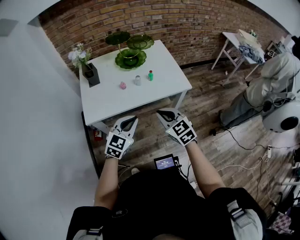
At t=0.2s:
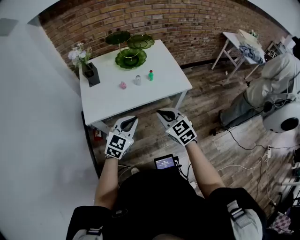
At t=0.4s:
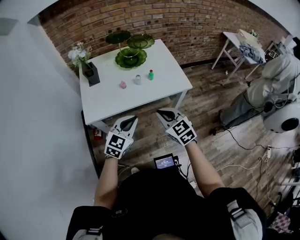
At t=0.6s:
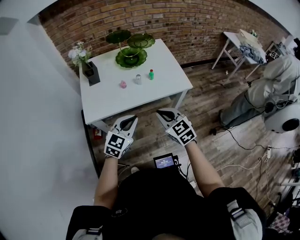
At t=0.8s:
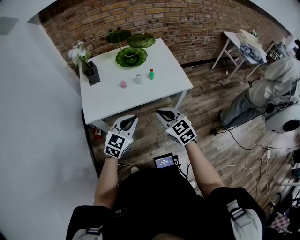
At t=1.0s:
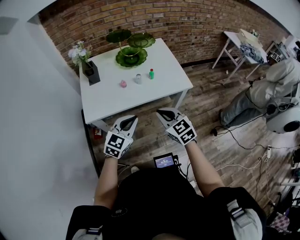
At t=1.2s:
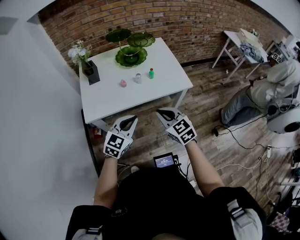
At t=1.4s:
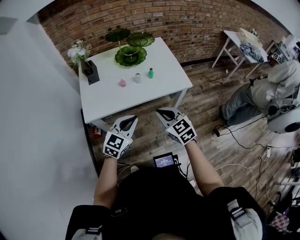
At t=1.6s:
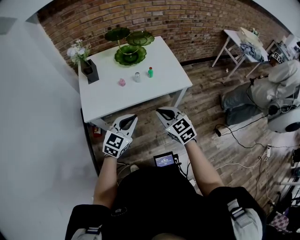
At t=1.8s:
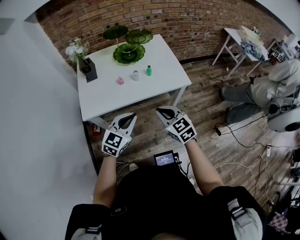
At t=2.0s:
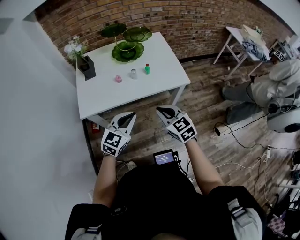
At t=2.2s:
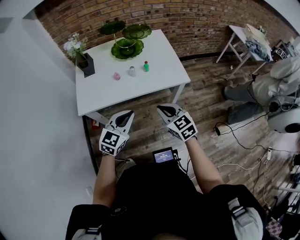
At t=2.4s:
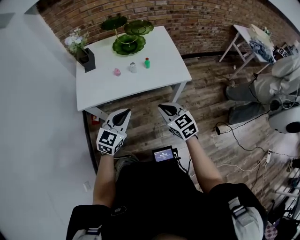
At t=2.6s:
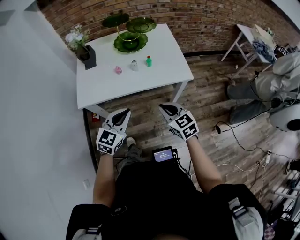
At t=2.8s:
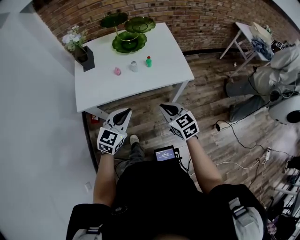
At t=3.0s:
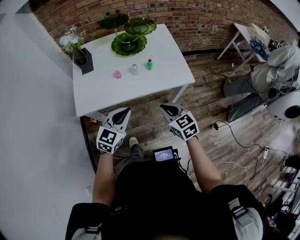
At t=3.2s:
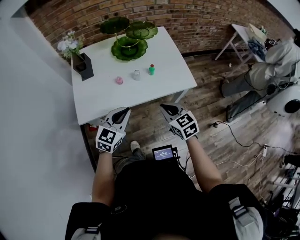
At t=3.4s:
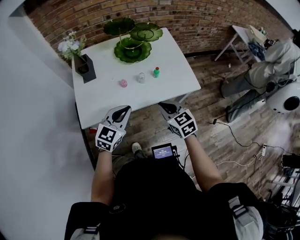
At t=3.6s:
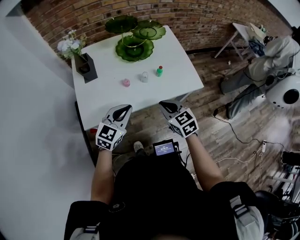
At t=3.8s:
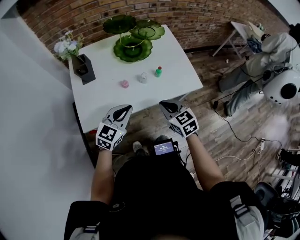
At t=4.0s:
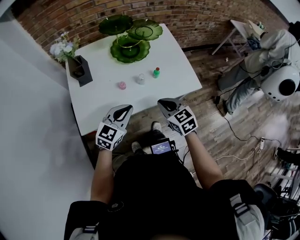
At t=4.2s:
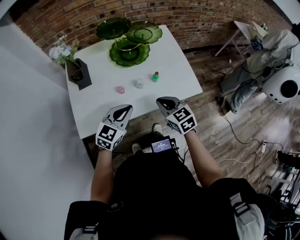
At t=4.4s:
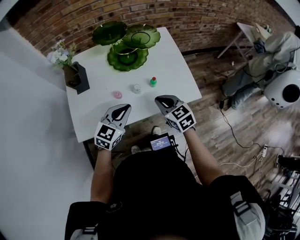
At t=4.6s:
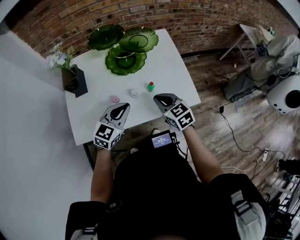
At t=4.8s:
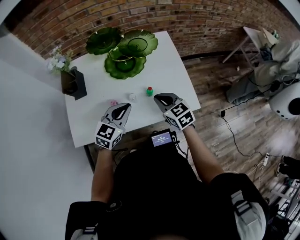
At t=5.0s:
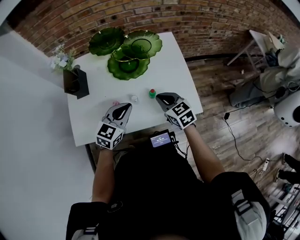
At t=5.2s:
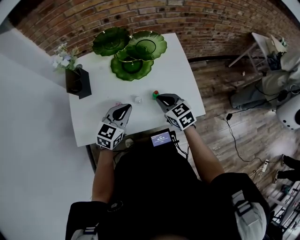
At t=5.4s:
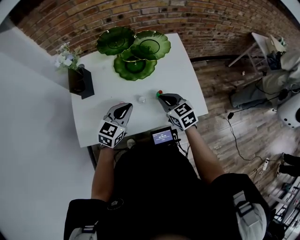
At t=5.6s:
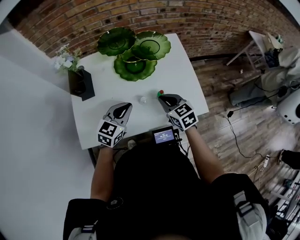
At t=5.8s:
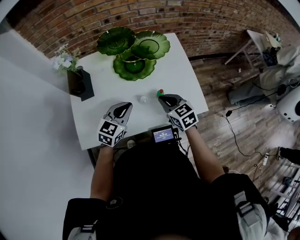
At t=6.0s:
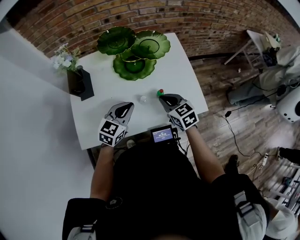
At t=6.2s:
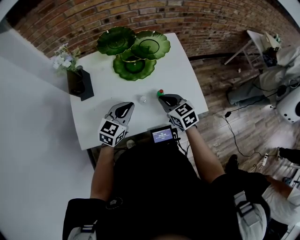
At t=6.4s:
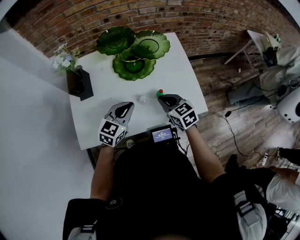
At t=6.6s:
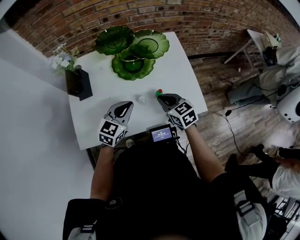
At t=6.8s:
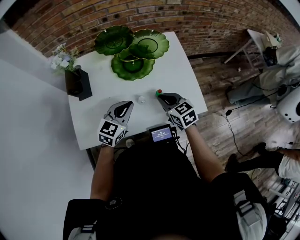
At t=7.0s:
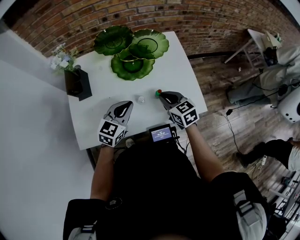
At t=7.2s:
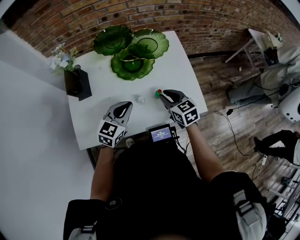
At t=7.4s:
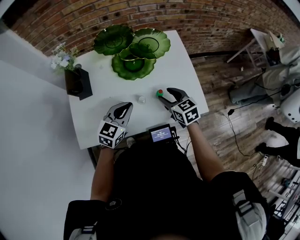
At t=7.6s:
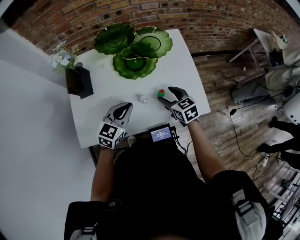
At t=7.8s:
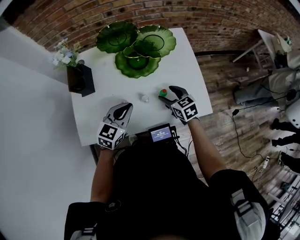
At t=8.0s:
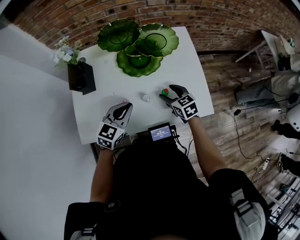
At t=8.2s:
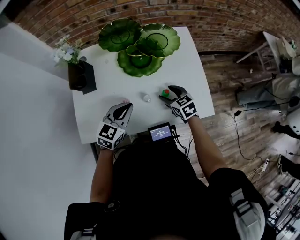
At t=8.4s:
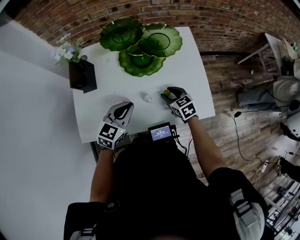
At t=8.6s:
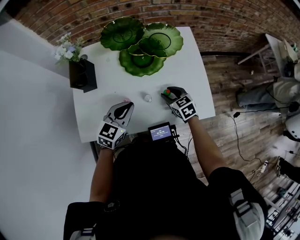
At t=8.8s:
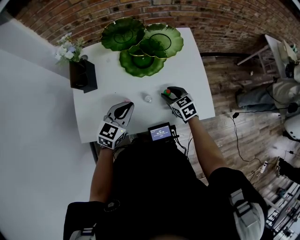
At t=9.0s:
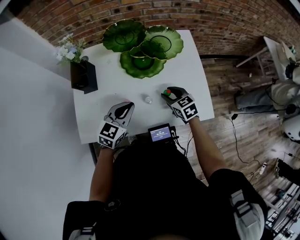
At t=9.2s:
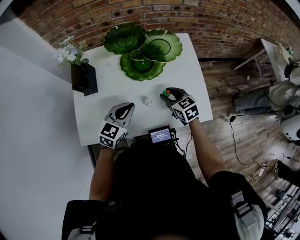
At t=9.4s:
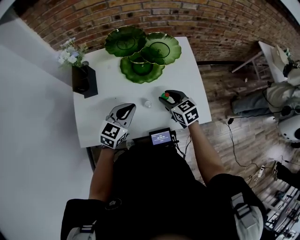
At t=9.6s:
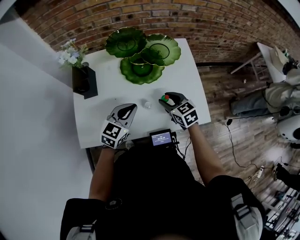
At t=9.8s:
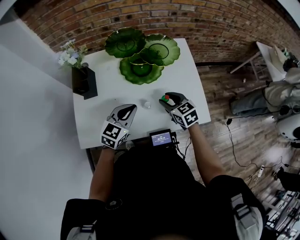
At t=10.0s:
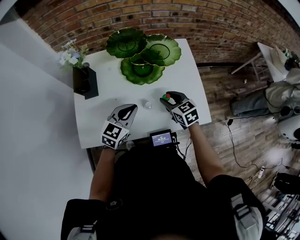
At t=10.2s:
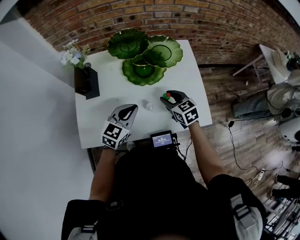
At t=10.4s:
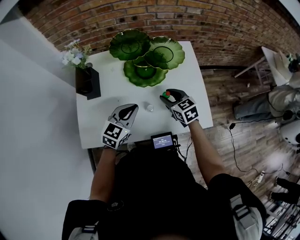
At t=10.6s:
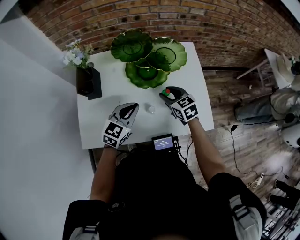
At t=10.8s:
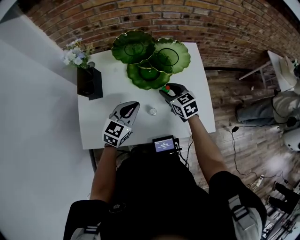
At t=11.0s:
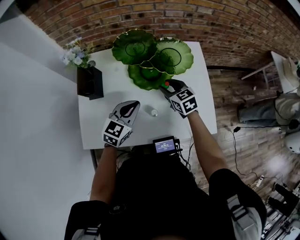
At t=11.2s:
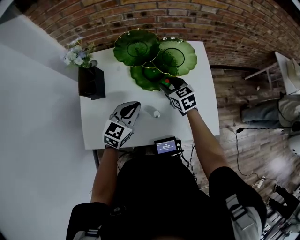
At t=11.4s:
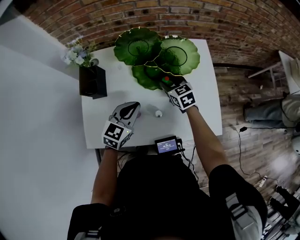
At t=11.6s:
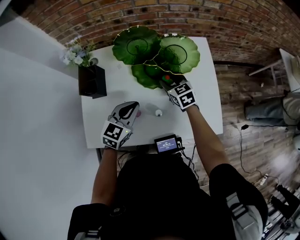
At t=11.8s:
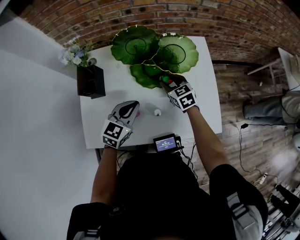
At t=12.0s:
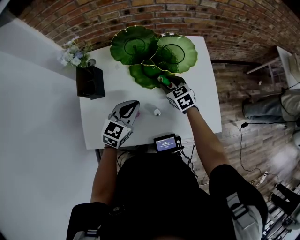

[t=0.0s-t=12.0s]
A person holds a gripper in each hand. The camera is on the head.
t=0.0s to t=1.6s: Both grippers stay put.
t=1.6s to t=3.0s: The left gripper shifts by approximately 5 cm. The right gripper is displaced downward by approximately 5 cm.
t=3.0s to t=4.4s: The grippers both shift forward by roughly 15 cm.
t=4.4s to t=6.0s: Both grippers travel together forward, about 5 cm.
t=6.0s to t=7.6s: The right gripper moves roughly 5 cm, and opens up.
t=7.6s to t=9.0s: The right gripper closes its fingers.
t=9.0s to t=10.4s: The right gripper ends up approximately 5 cm from where it was.
t=10.4s to t=12.0s: The right gripper moves forward, roughly 10 cm.

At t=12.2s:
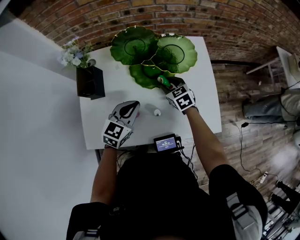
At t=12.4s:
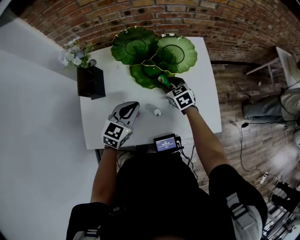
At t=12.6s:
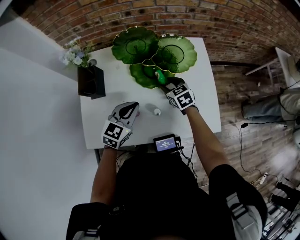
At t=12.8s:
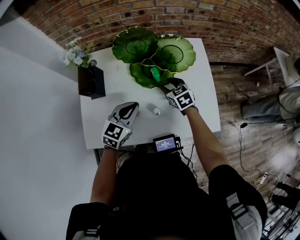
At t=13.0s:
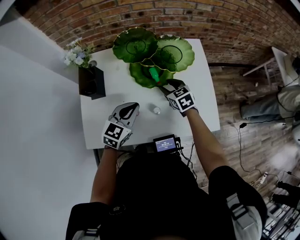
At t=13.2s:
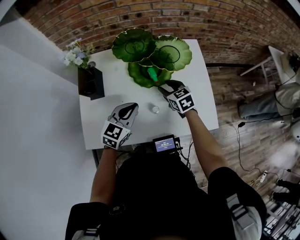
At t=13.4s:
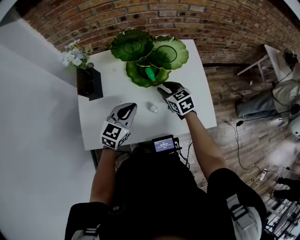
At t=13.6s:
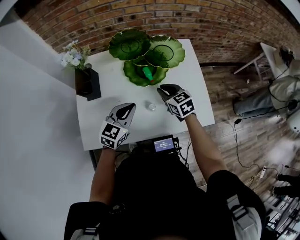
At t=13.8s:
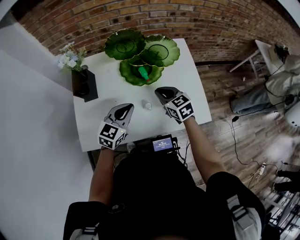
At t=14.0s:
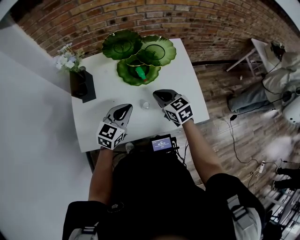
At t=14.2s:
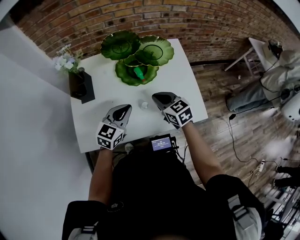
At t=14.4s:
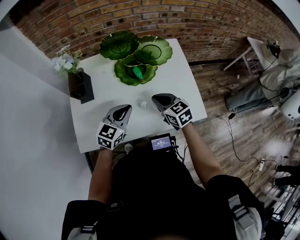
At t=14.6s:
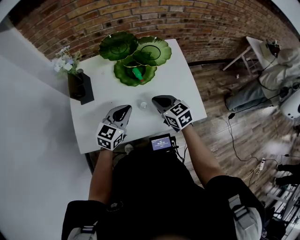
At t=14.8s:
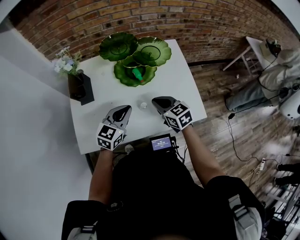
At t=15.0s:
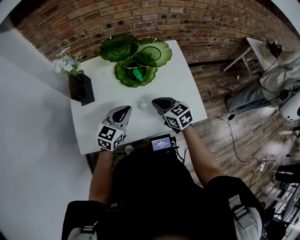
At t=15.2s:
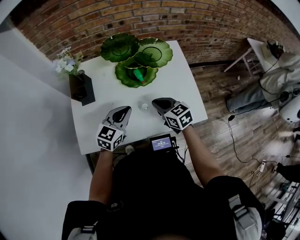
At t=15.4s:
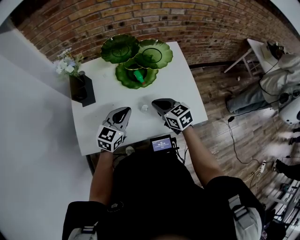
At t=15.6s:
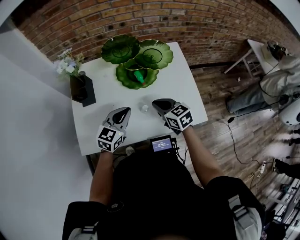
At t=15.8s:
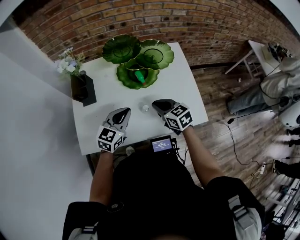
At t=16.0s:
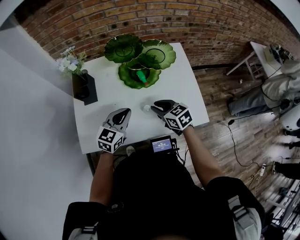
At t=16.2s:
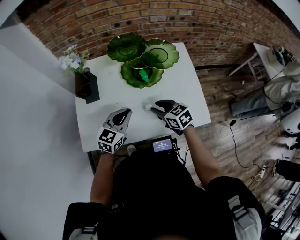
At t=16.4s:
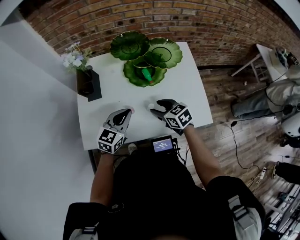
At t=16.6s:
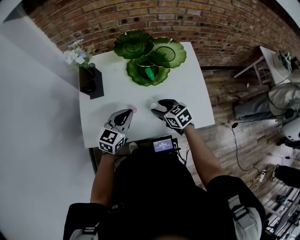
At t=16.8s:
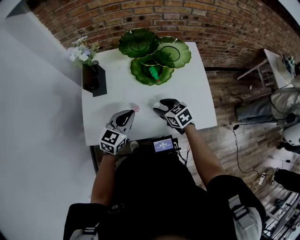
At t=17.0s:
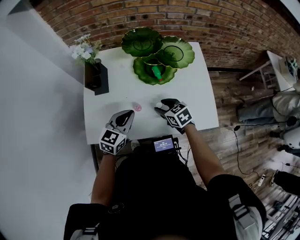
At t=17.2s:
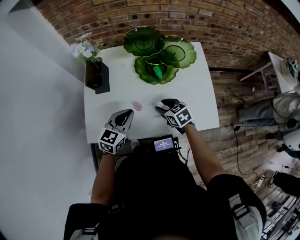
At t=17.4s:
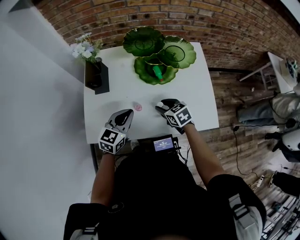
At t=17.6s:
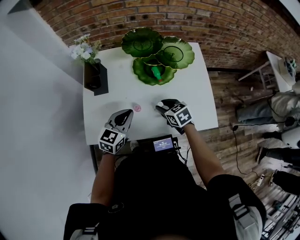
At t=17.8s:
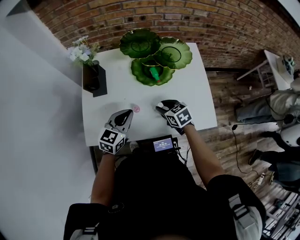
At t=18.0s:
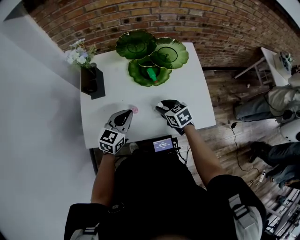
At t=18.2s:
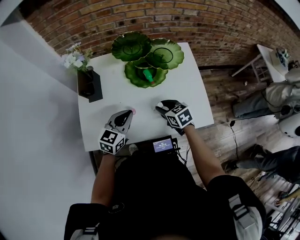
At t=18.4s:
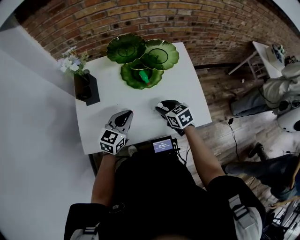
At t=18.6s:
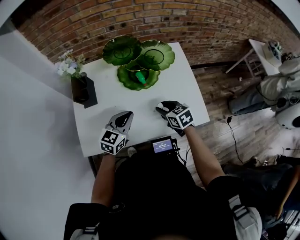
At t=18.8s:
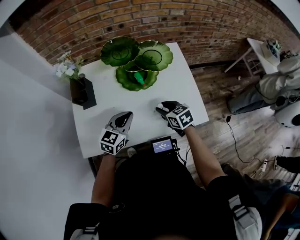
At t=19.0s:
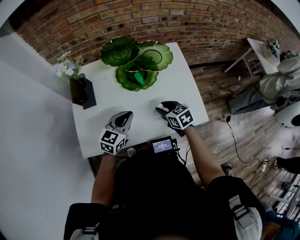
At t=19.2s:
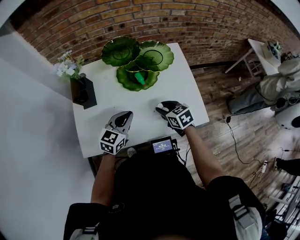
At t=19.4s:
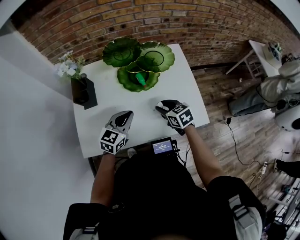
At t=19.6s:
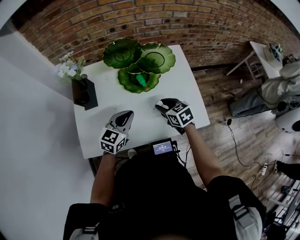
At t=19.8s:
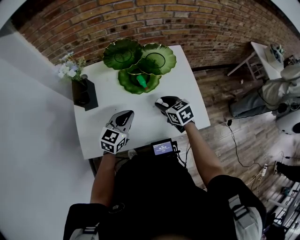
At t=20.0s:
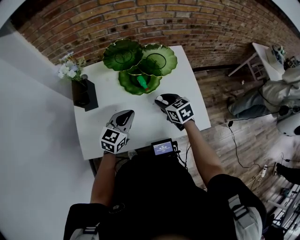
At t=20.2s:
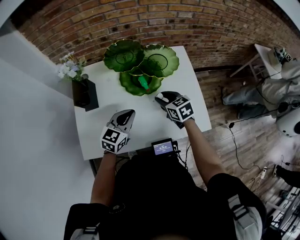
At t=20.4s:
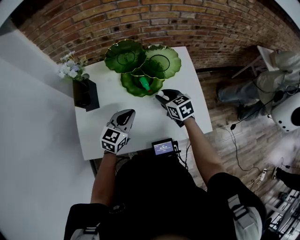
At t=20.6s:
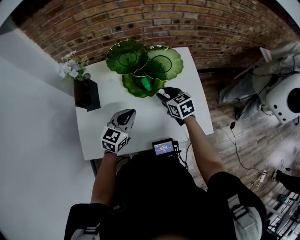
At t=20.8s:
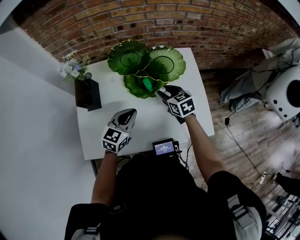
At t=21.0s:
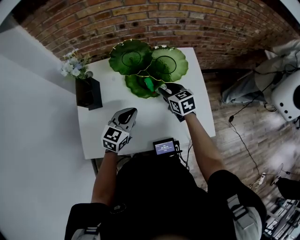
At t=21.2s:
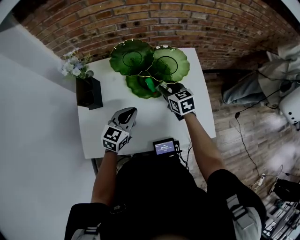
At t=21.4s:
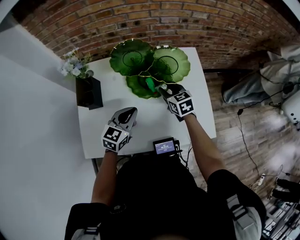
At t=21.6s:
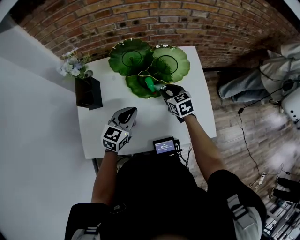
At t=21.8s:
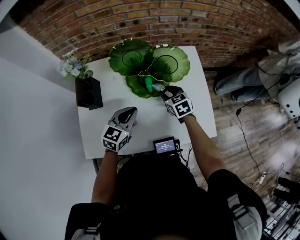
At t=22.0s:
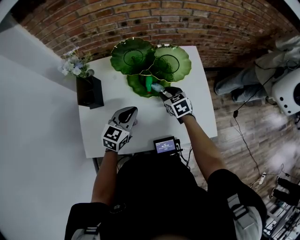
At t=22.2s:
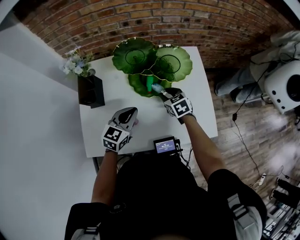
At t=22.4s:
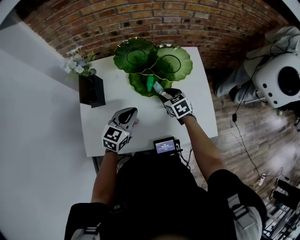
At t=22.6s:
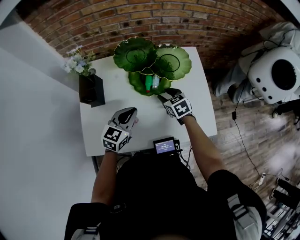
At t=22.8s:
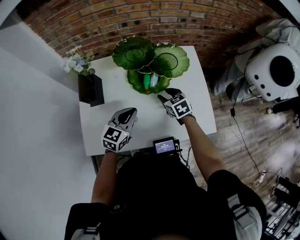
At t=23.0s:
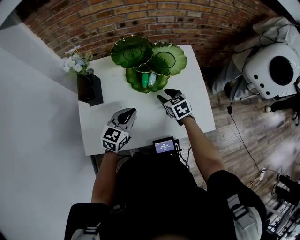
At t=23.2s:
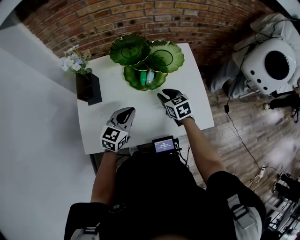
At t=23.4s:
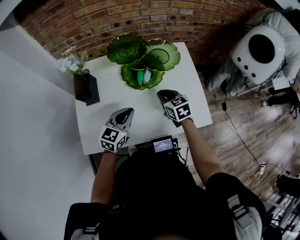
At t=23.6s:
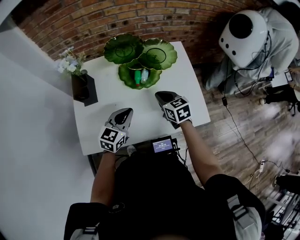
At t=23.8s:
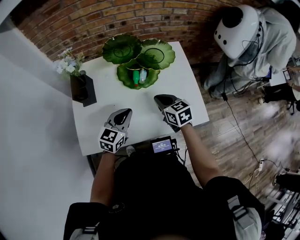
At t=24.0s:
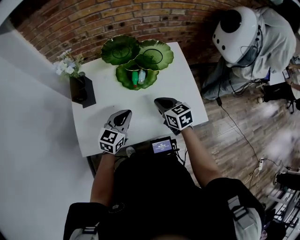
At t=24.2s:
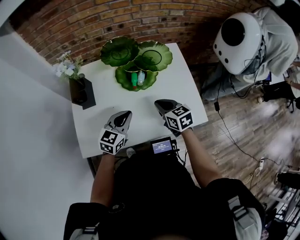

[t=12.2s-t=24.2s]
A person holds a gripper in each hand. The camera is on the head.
t=12.2s to t=13.8s: The right gripper heads backward and upward, covering approximately 10 cm, and closes its fingers.
t=13.8s to t=15.2s: The right gripper moves backward, roughly 5 cm.
t=15.2s to t=16.6s: The right gripper shifts by approximately 5 cm, and opens its fingers.
t=16.6s to t=18.2s: There are only small adjustments of the grippers.
t=18.2s to t=19.8s: The right gripper ends up about 5 cm from where it was.
t=19.8s to t=21.2s: The right gripper moves forward, about 10 cm.
t=21.2s to t=22.6s: The right gripper moves approximately 5 cm.
t=22.6s to t=24.2s: The right gripper is displaced backward and upward by some 10 cm, and closes up.
